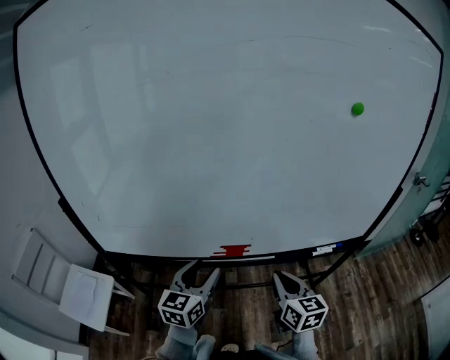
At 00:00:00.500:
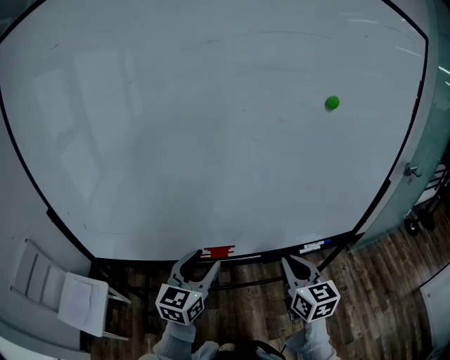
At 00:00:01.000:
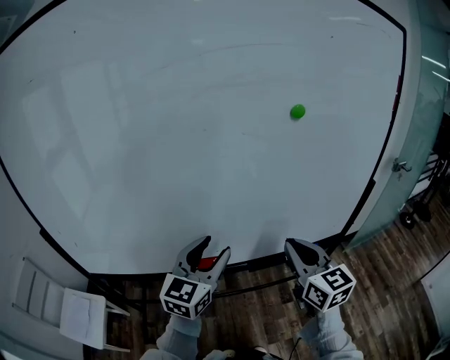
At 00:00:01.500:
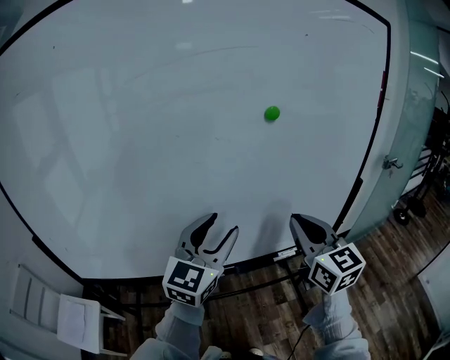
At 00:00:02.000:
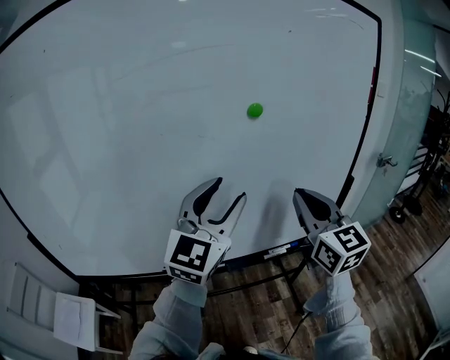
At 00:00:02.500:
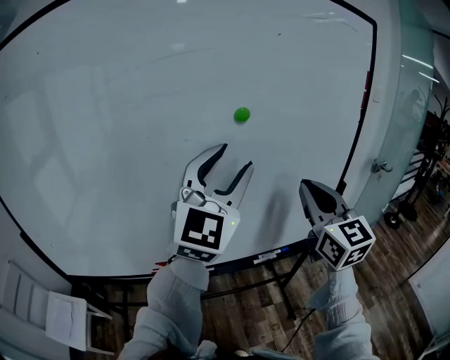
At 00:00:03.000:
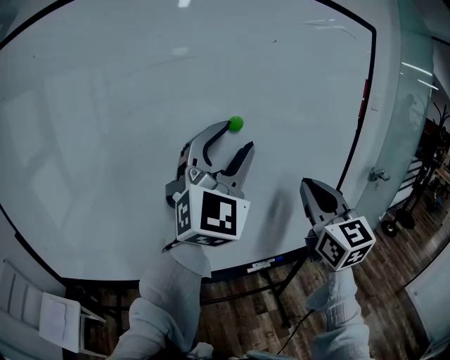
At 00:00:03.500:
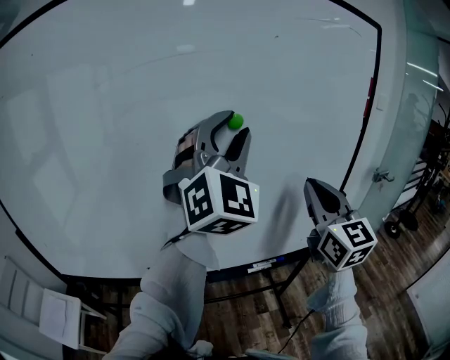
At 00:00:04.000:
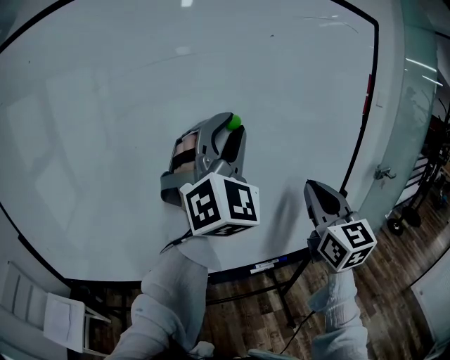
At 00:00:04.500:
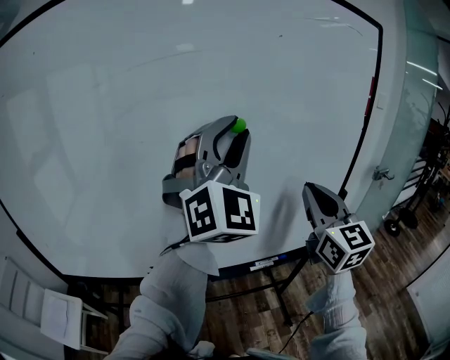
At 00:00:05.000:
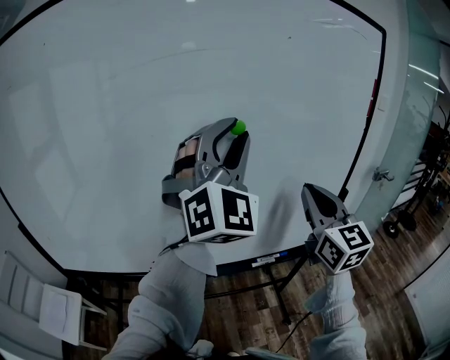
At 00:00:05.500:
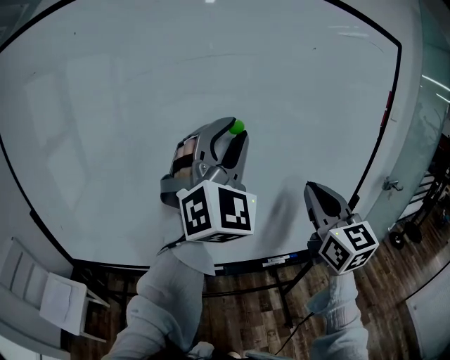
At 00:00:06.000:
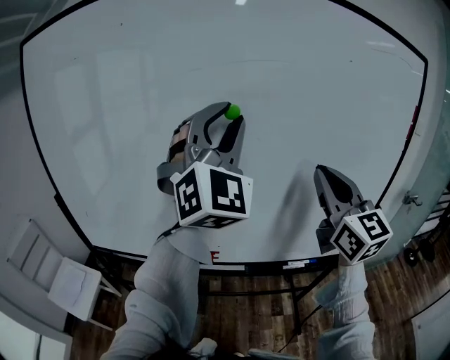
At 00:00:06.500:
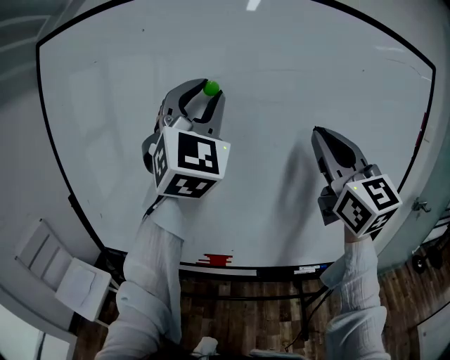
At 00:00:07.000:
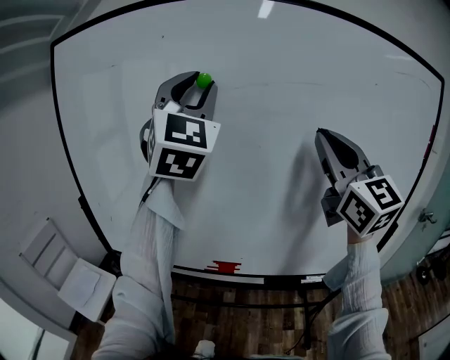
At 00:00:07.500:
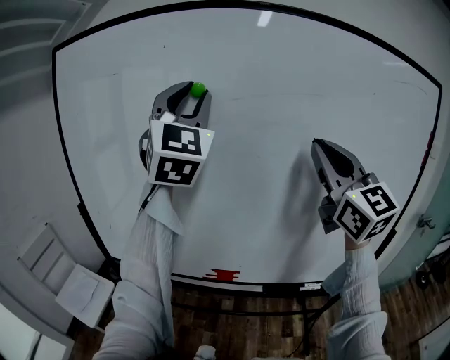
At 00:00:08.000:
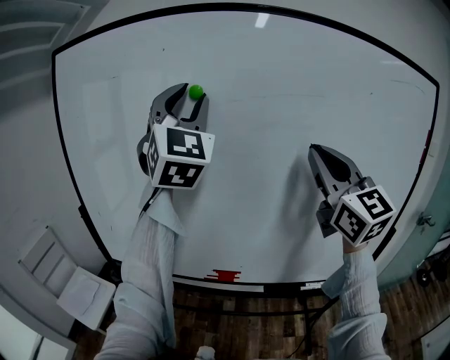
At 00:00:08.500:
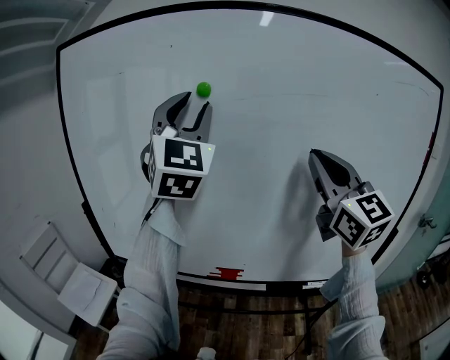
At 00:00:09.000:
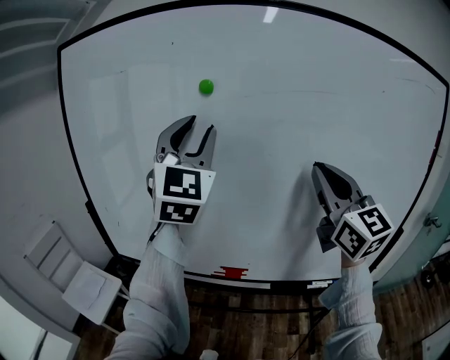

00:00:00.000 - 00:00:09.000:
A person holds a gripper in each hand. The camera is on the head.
00:00:00.000 - 00:00:02.000: The grippers both shift upward and to the right by approximately 35 cm. The right gripper swivels some 30 degrees. The left gripper changes its angle by some 40 degrees.
00:00:02.000 - 00:00:04.500: The left gripper heads upward and to the right, covering roughly 15 cm, rotates roughly 40 degrees, and closes, while the right gripper shifts some 5 cm to the right.
00:00:04.500 - 00:00:07.000: The right gripper moves to the left and upward, some 30 cm, and turns by some 30 degrees. The left gripper shifts about 30 cm to the left, and swivels some 20 degrees.
00:00:07.000 - 00:00:09.000: The grippers both shift downward by some 5 cm.

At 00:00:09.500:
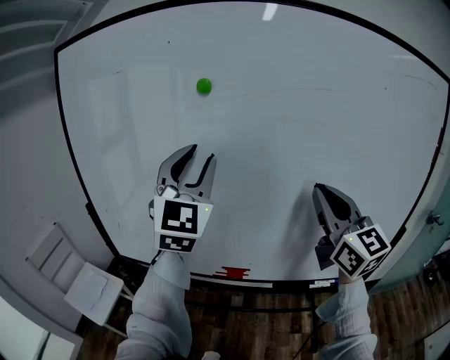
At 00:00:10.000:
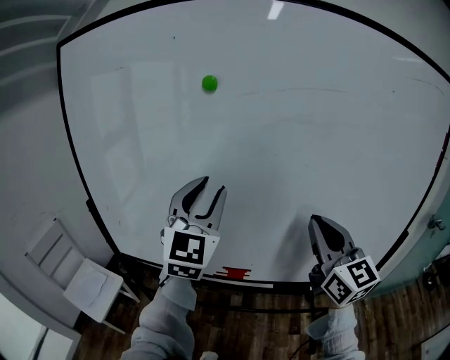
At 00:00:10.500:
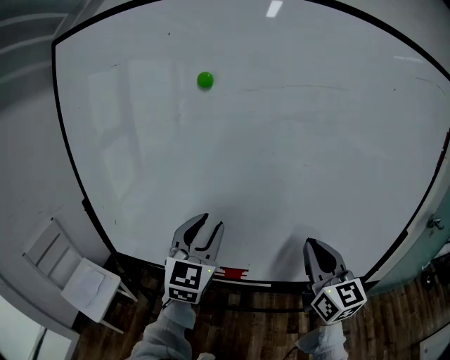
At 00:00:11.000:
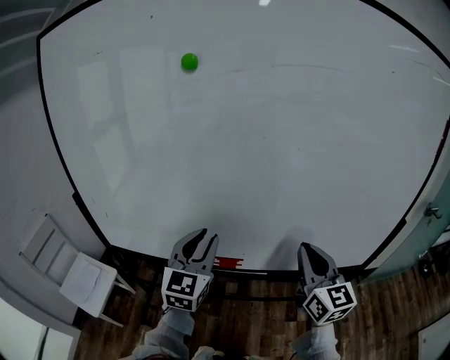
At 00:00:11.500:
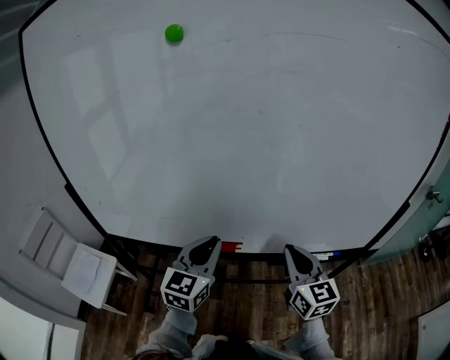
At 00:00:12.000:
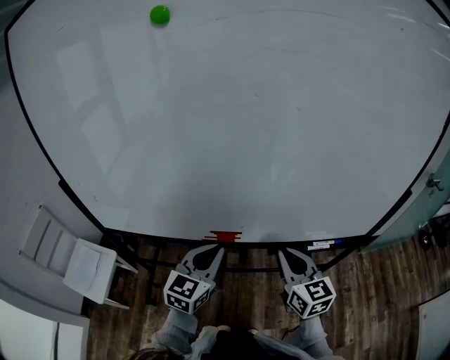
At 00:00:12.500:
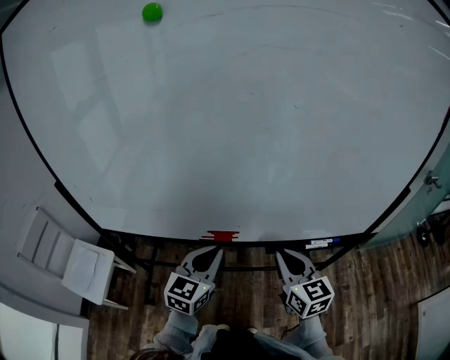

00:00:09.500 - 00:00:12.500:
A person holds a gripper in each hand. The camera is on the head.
00:00:09.500 - 00:00:11.000: Both grippers move downward, about 20 cm. The left gripper changes its angle by some 30 degrees.
00:00:11.000 - 00:00:12.500: Both grippers travel together downward, about 15 cm. The left gripper rotates about 20 degrees, and closes up.

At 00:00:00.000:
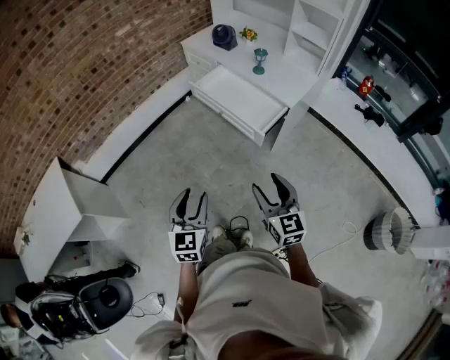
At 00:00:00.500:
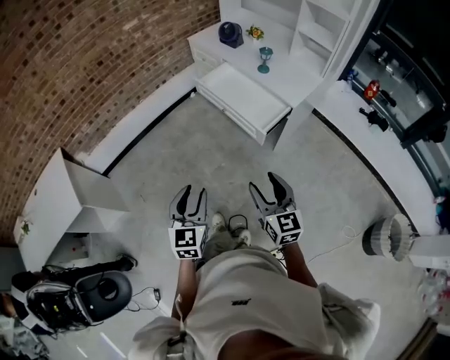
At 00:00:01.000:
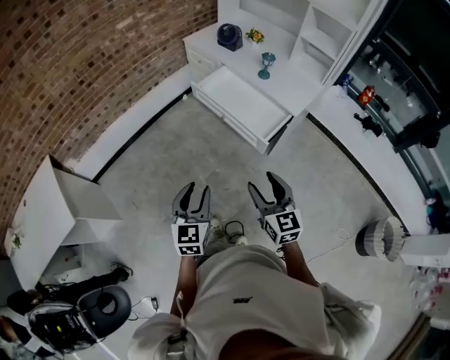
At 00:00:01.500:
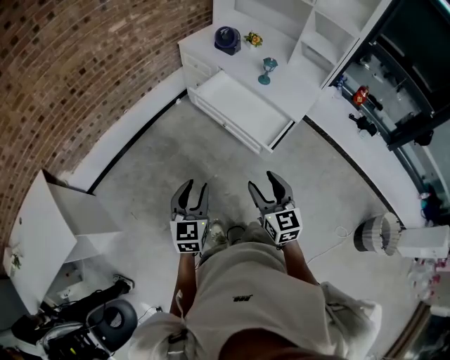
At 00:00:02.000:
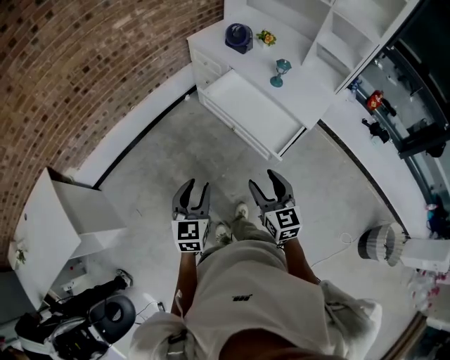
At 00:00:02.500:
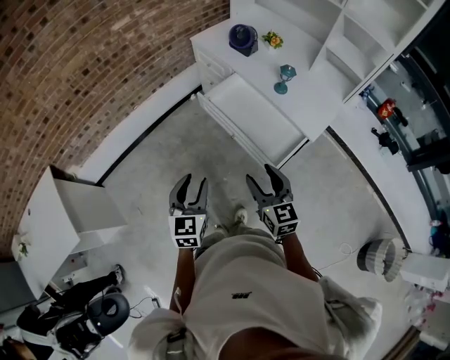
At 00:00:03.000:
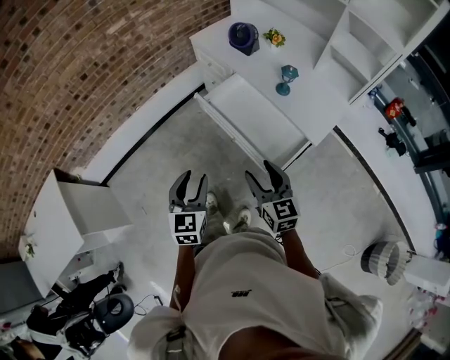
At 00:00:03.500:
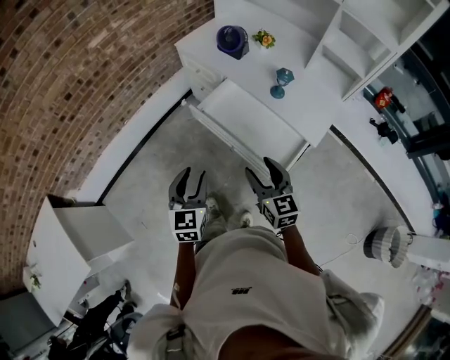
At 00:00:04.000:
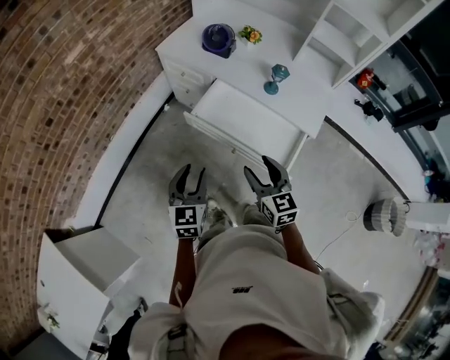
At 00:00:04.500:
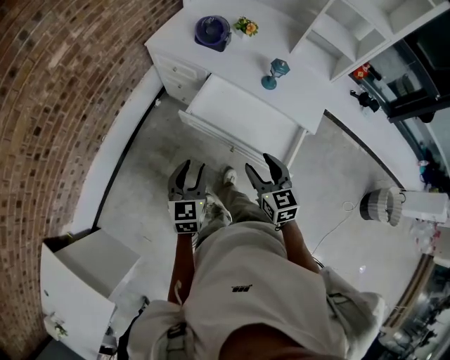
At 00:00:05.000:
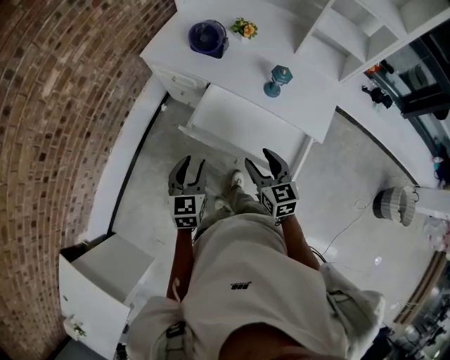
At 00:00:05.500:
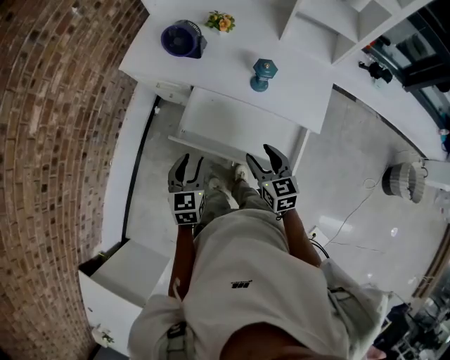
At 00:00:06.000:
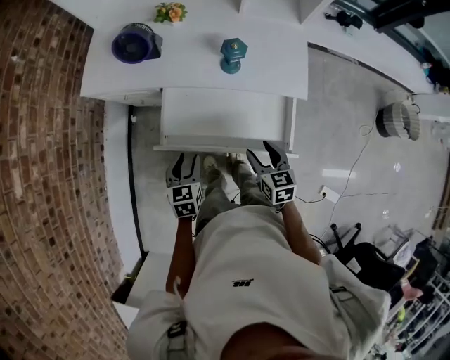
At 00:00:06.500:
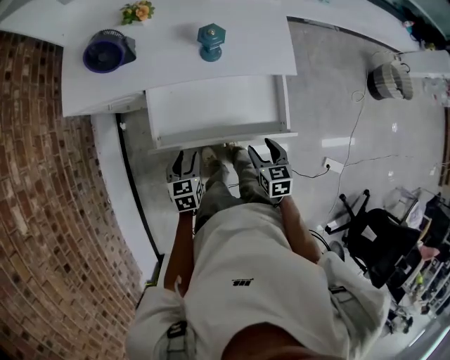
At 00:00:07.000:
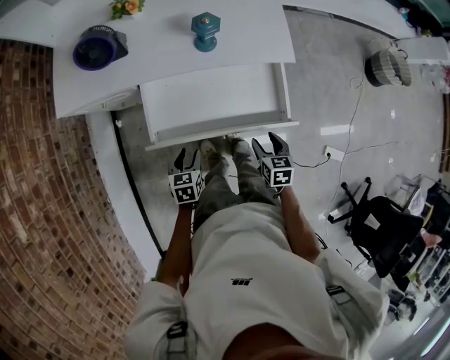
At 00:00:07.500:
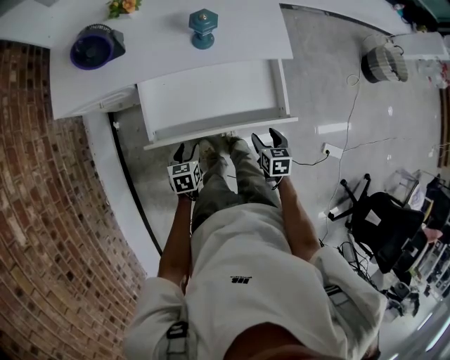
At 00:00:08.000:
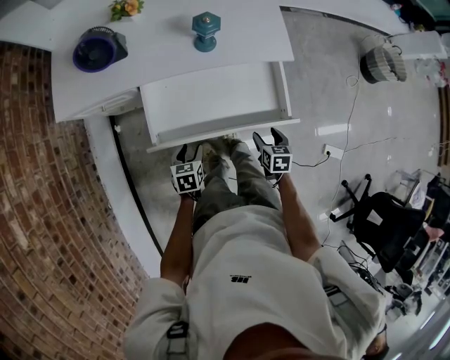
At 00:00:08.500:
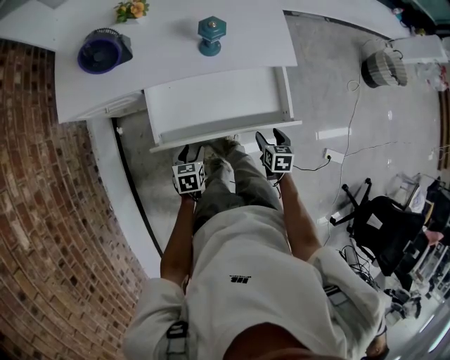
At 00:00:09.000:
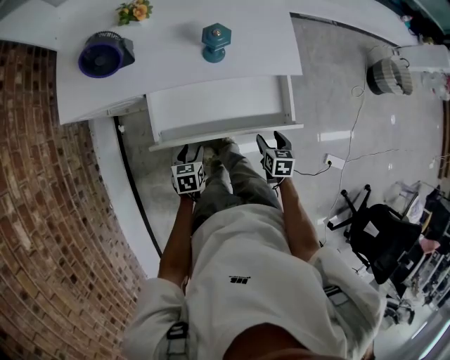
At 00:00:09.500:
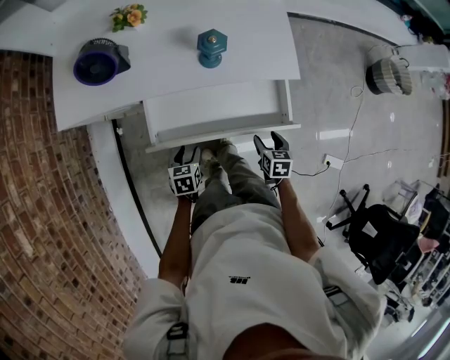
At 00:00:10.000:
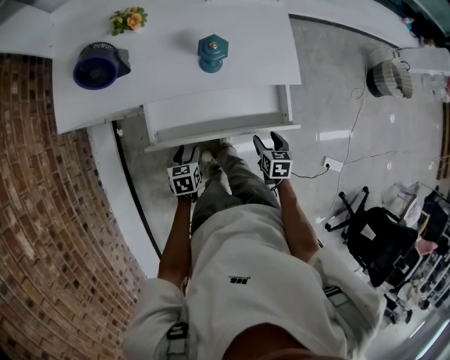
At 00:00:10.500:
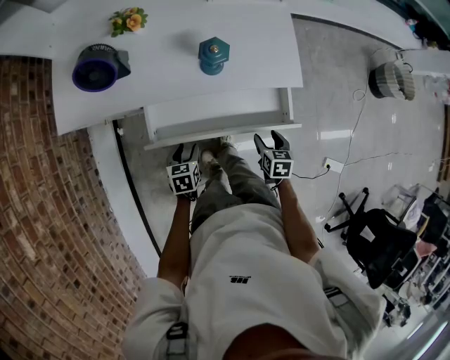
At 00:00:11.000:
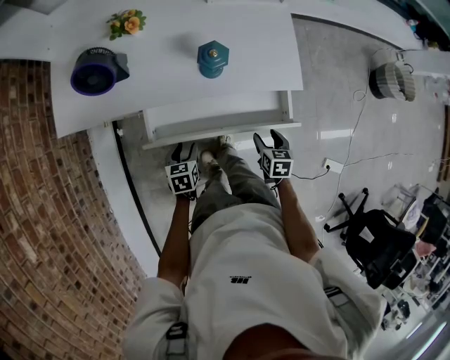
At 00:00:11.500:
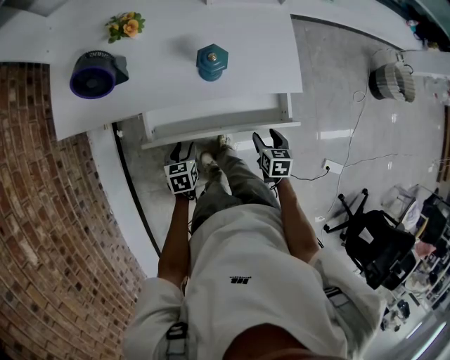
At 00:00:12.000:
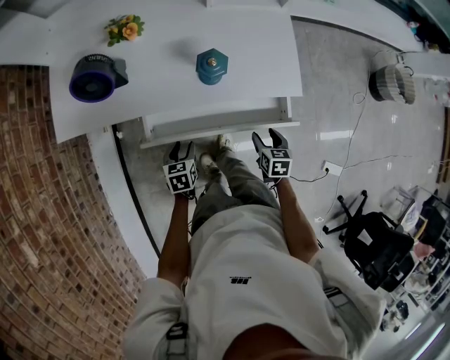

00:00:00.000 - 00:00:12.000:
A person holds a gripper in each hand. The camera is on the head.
00:00:00.000 - 00:00:02.000: Both grippers move forward, approximately 20 cm.
00:00:02.000 - 00:00:04.000: Both grippers travel together forward, approximately 25 cm.
00:00:04.000 - 00:00:06.000: The right gripper goes about 15 cm downward, and swivels some 40 degrees; the left gripper moves some 30 cm, and swivels approximately 30 degrees.
00:00:06.000 - 00:00:08.000: Both grippers travel together downward, about 15 cm. The left gripper rotates some 20 degrees. Meanwhile the right gripper rotates about 30 degrees.
00:00:08.000 - 00:00:10.000: The grippers both shift forward by about 10 cm.
00:00:10.000 - 00:00:12.000: The two grippers go about 5 cm forward.

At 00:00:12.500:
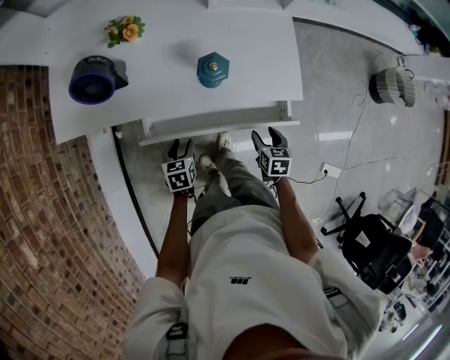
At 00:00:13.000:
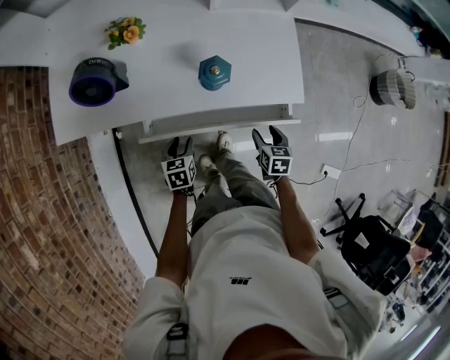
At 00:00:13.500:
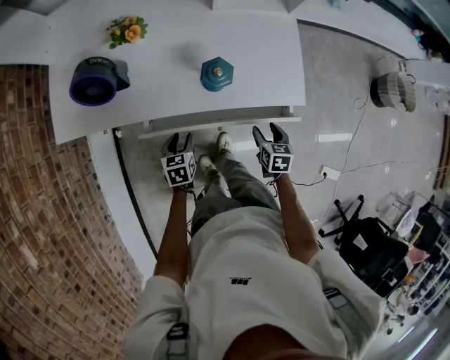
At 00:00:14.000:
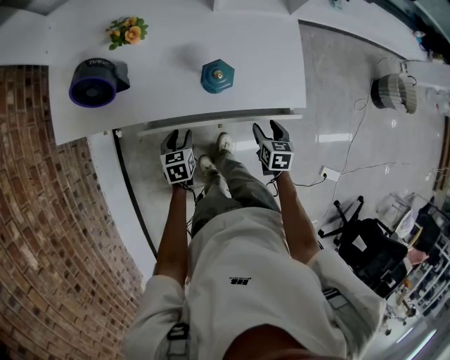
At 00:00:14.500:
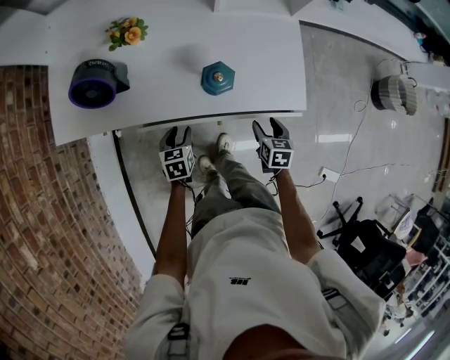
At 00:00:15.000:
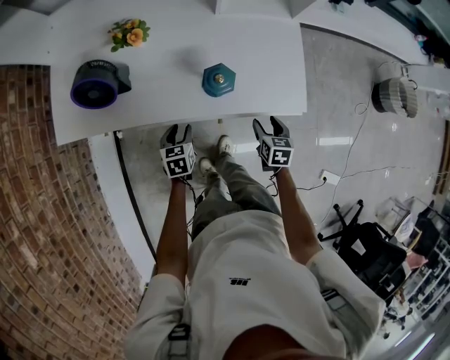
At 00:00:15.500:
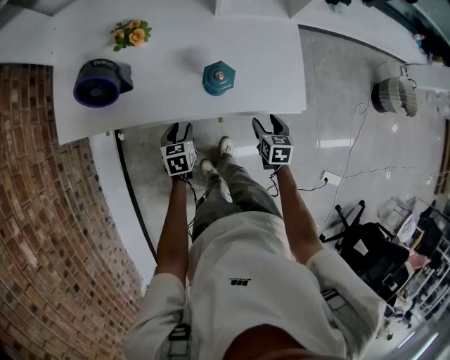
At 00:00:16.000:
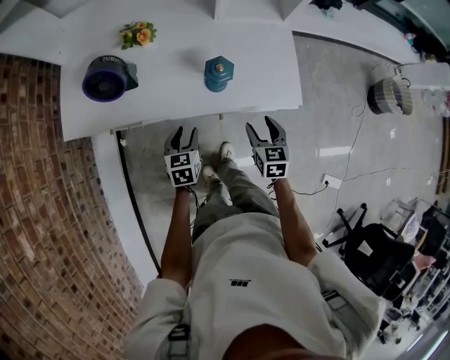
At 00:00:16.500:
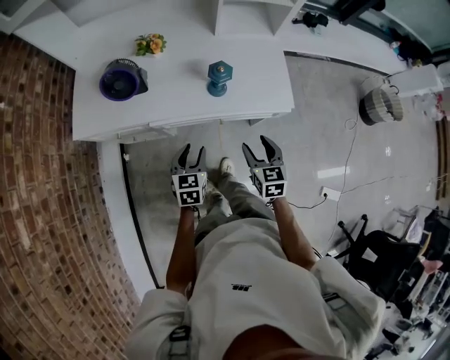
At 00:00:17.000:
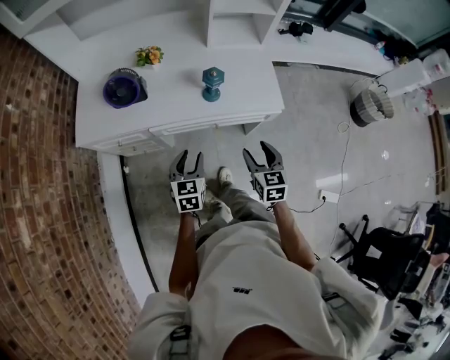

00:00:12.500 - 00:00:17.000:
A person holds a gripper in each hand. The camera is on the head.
00:00:12.500 - 00:00:14.500: Both grippers move forward, some 5 cm.
00:00:14.500 - 00:00:17.000: Both grippers travel together upward and backward, some 25 cm. The left gripper turns by some 30 degrees. The right gripper rotates about 20 degrees.
